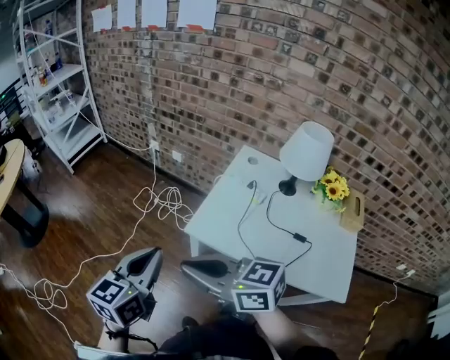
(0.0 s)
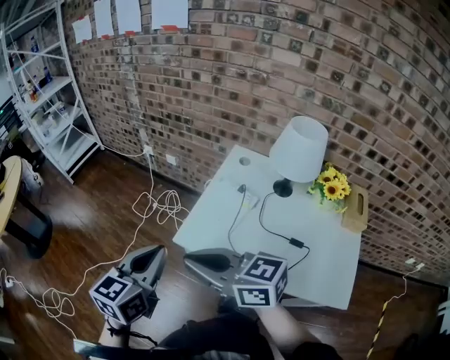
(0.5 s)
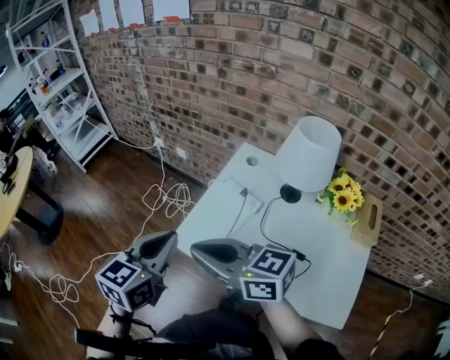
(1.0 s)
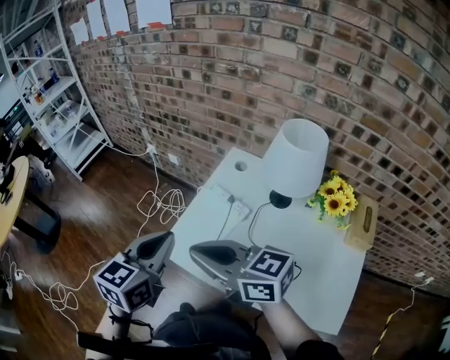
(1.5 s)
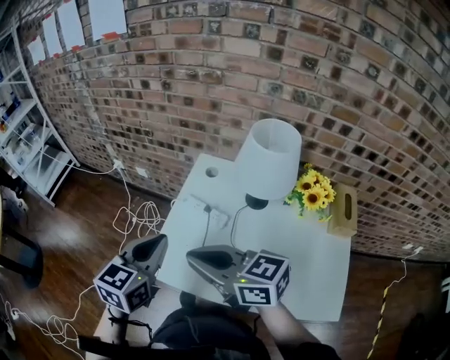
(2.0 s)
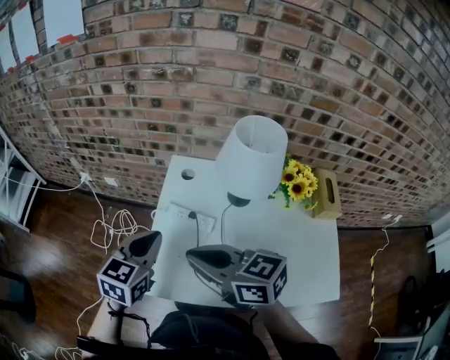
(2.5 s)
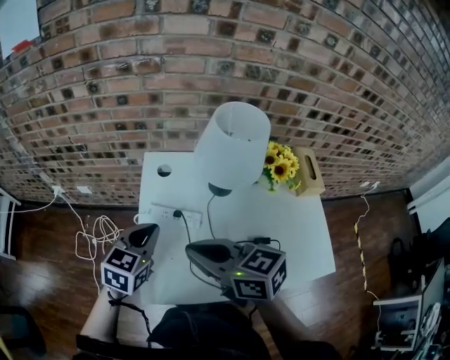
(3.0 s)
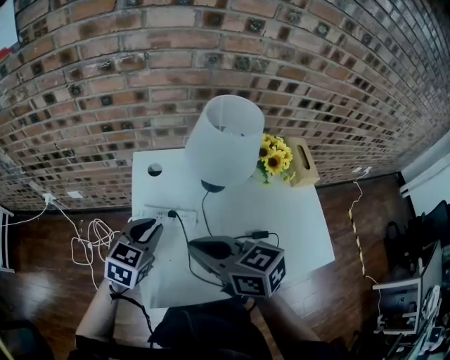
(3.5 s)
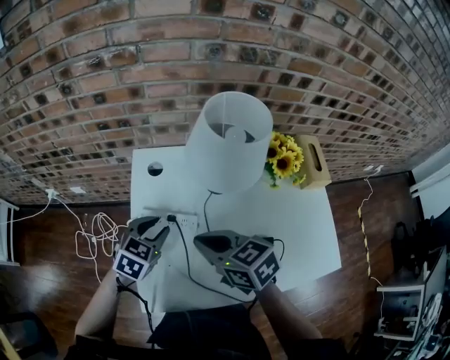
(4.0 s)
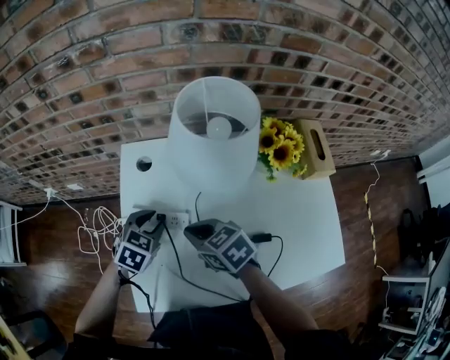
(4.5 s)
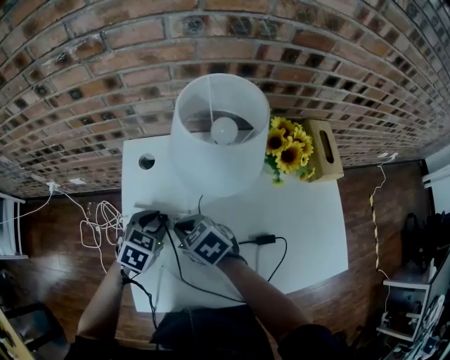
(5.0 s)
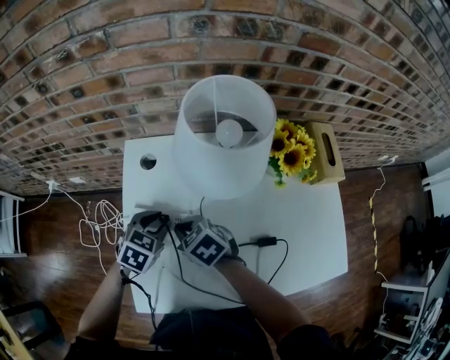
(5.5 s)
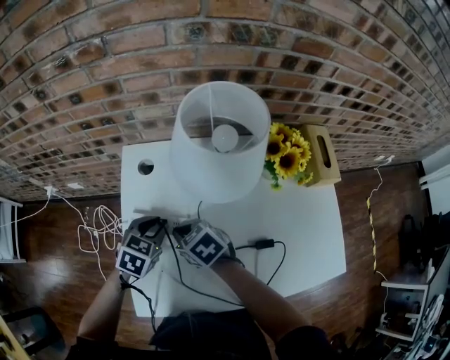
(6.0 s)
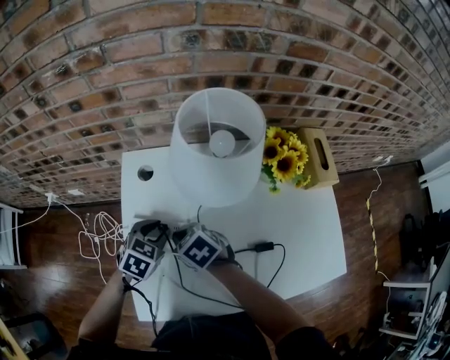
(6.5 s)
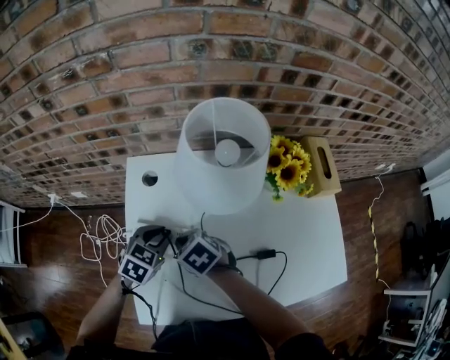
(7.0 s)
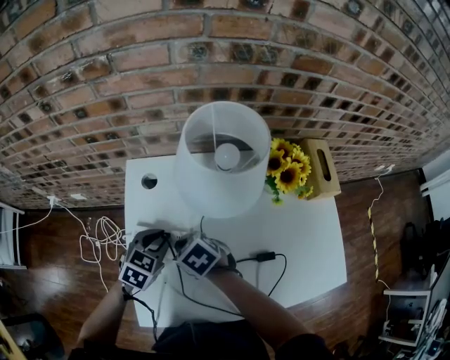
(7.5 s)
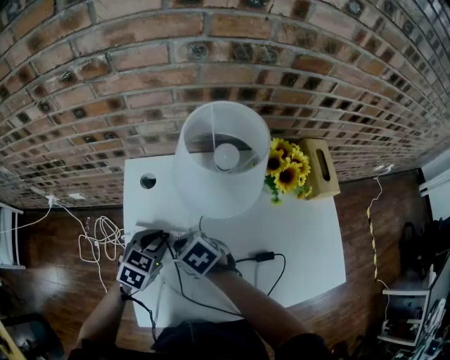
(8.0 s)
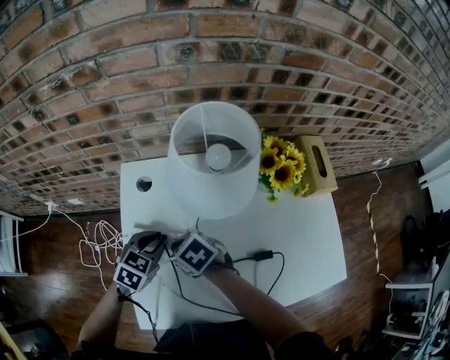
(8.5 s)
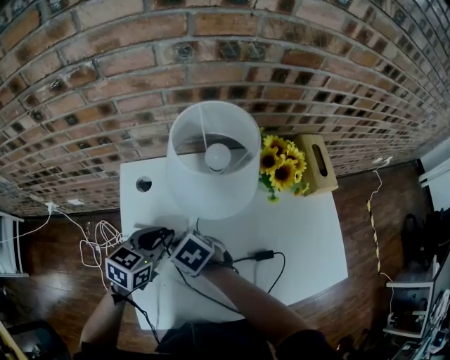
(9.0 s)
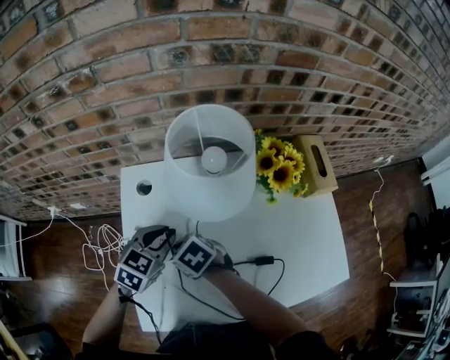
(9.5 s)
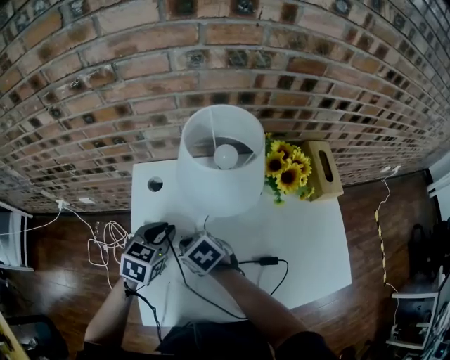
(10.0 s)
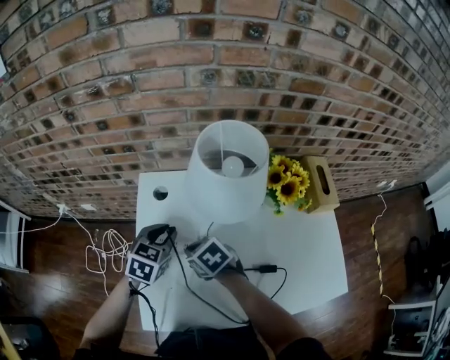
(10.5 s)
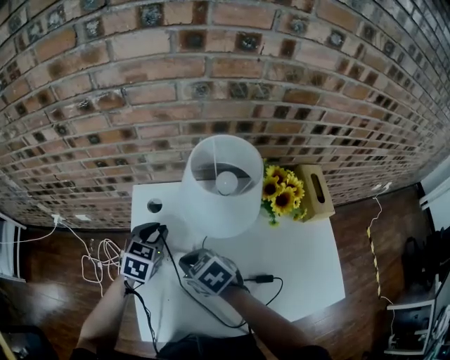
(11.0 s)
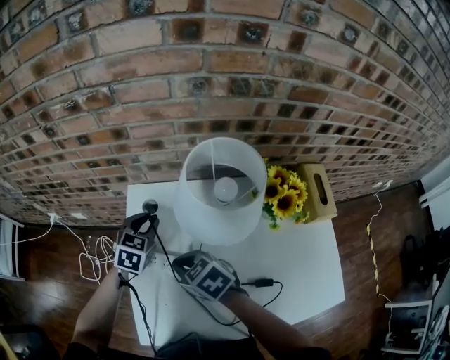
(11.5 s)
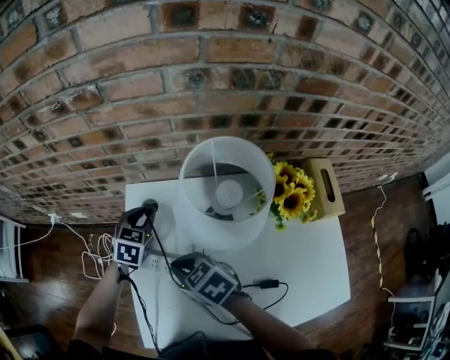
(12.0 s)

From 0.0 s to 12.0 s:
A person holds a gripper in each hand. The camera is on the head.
From 0.0 s to 2.0 s: The grippers both shift to the right and forward by approximately 25 cm.
From 2.0 s to 4.0 s: The right gripper ends up about 20 cm from where it was, and changes its angle by roughly 40 degrees; the left gripper heads downward, covering roughly 15 cm, swivels approximately 40 degrees, and opens.
From 4.0 s to 6.0 s: The right gripper heads downward and forward, covering roughly 15 cm, while the left gripper heads downward, covering about 5 cm.
From 6.0 s to 8.0 s: The grippers move only a little.
From 10.0 s to 12.0 s: The left gripper heads forward, covering about 15 cm. Meanwhile the right gripper is displaced upward by some 5 cm.

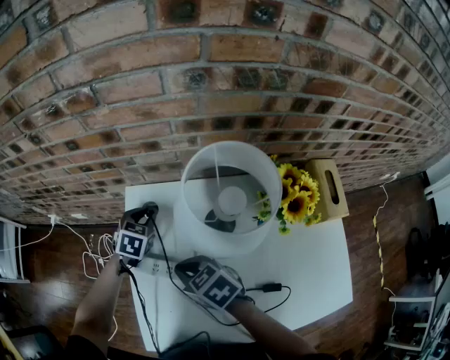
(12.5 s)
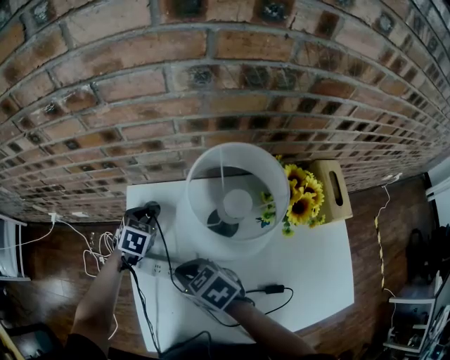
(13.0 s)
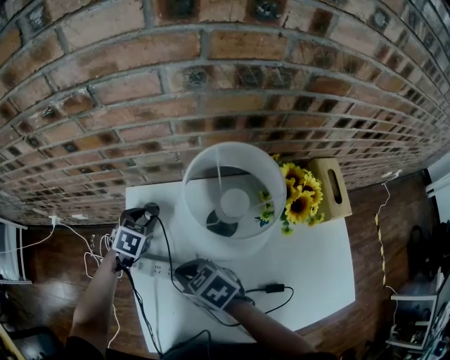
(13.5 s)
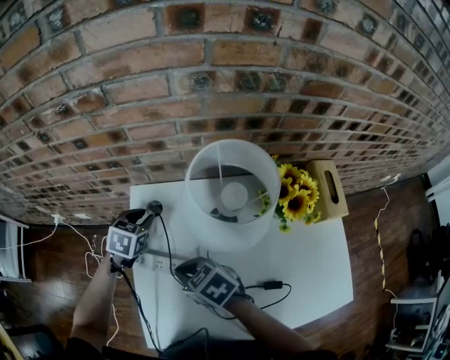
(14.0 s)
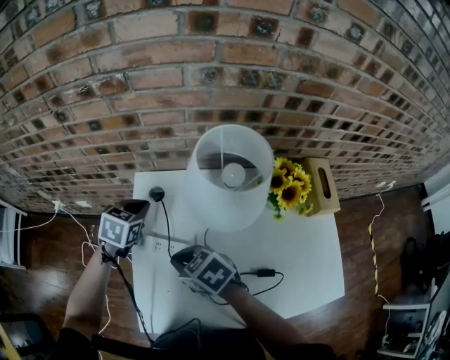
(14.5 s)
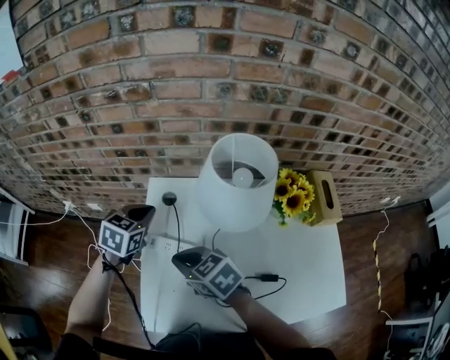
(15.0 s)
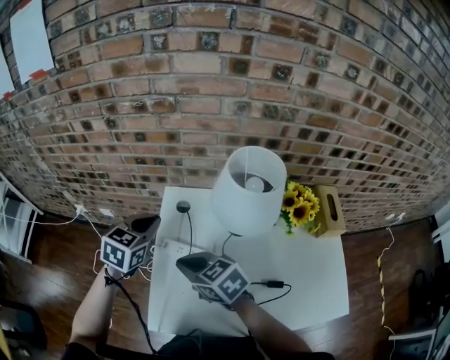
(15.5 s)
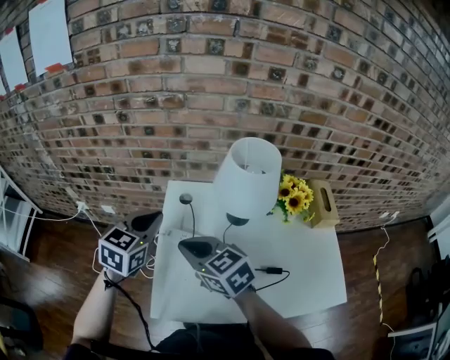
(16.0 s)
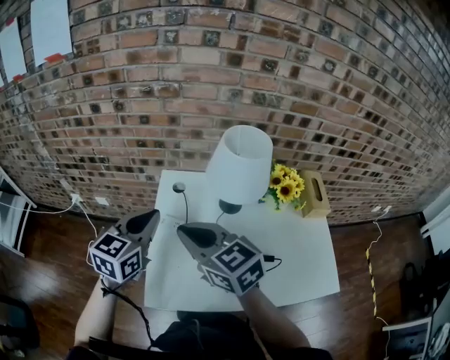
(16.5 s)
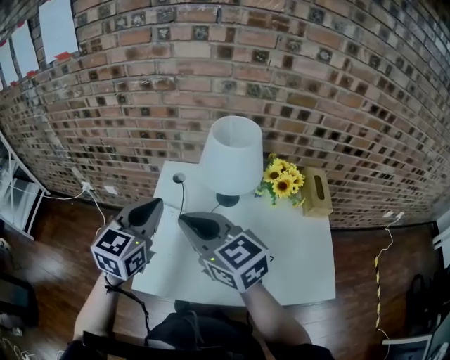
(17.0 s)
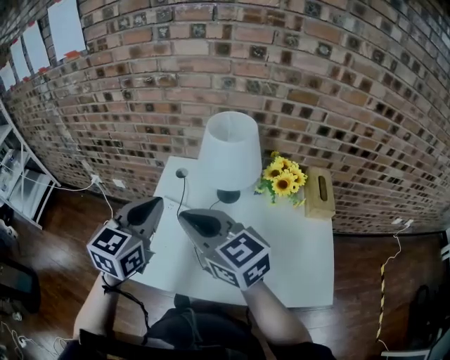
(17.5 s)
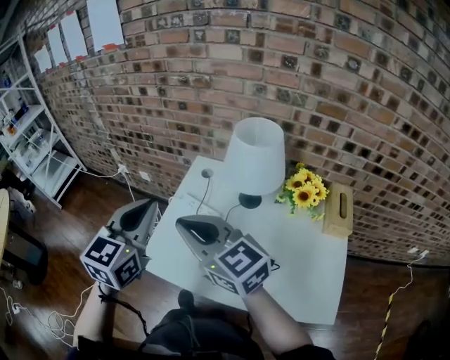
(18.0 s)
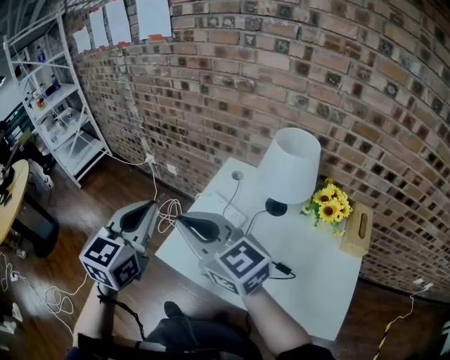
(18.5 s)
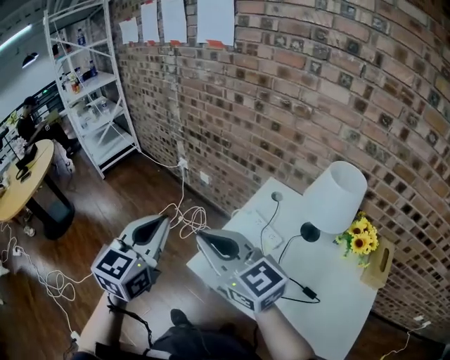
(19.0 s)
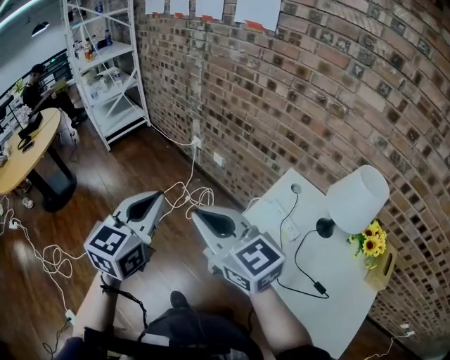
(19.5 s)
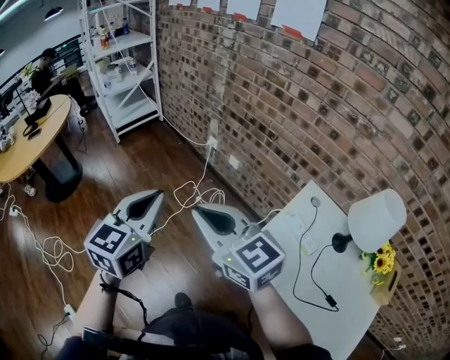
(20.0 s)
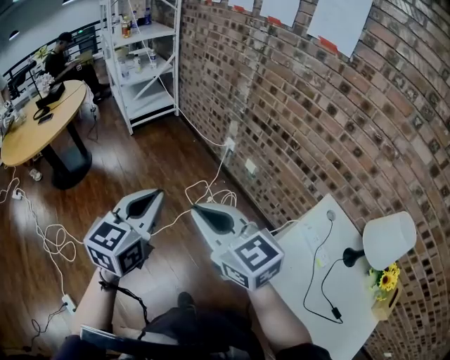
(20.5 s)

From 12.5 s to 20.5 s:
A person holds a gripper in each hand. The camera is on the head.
From 12.5 s to 14.5 s: The left gripper moves upward, roughly 5 cm, and closes. Meanwhile the right gripper ends up approximately 5 cm from where it was.
From 14.5 s to 16.5 s: The right gripper shifts about 20 cm upward, and rotates some 40 degrees; the left gripper is displaced upward and backward by roughly 25 cm, and points its fingers roughly 30 degrees further upward.
From 16.5 s to 18.5 s: The left gripper ends up roughly 20 cm from where it was, and changes its angle by roughly 30 degrees. Meanwhile the right gripper moves approximately 15 cm, and swivels roughly 30 degrees.
From 18.5 s to 20.5 s: The grippers both shift to the left and forward by about 40 cm. The left gripper rotates some 20 degrees.

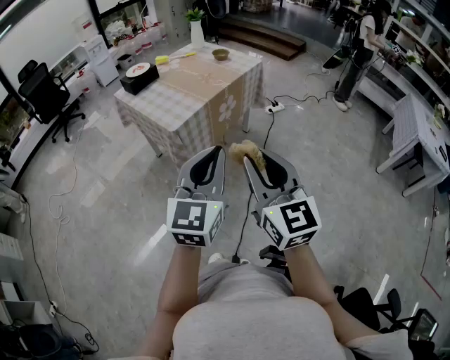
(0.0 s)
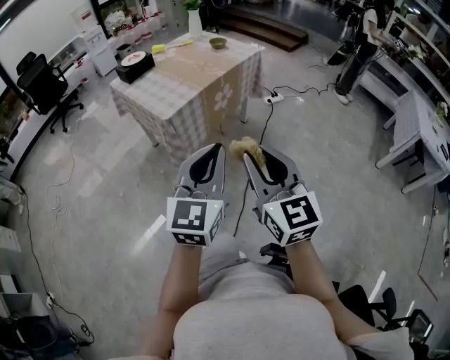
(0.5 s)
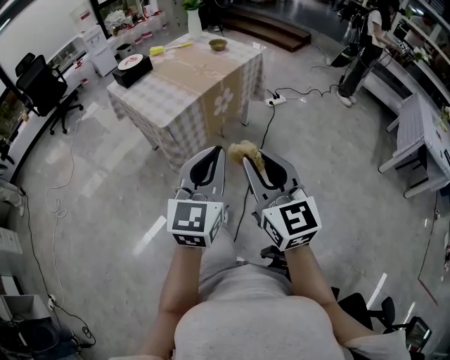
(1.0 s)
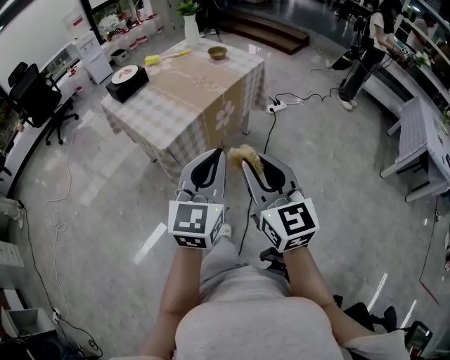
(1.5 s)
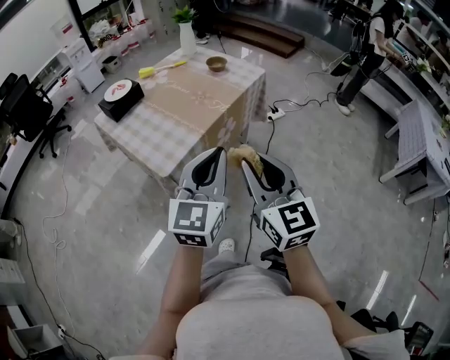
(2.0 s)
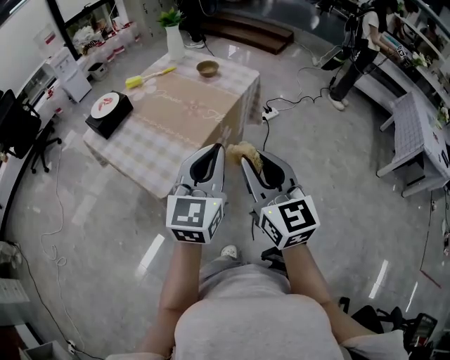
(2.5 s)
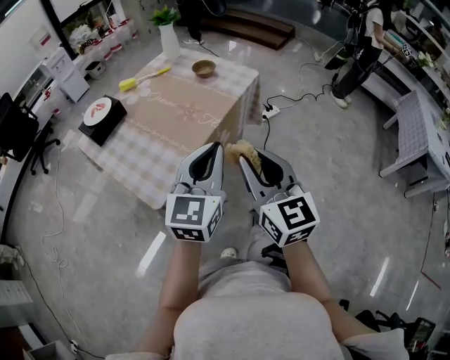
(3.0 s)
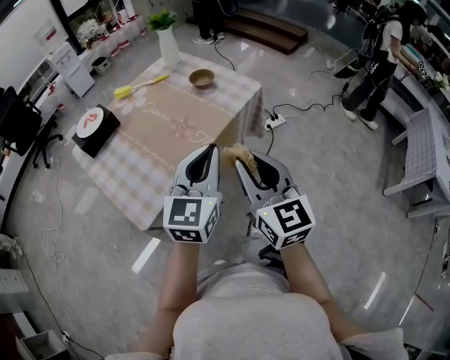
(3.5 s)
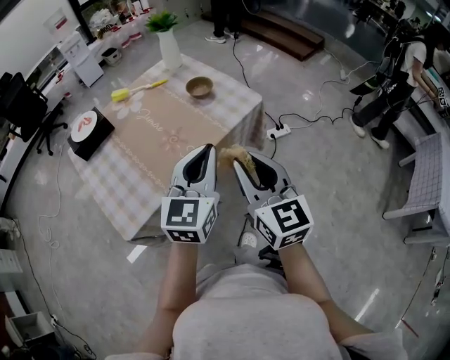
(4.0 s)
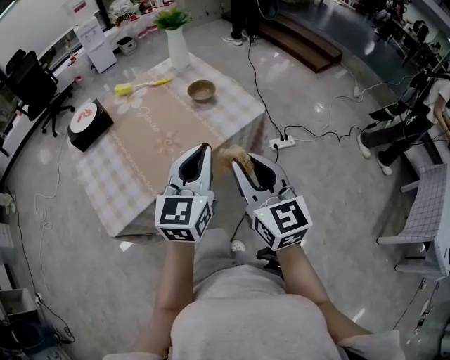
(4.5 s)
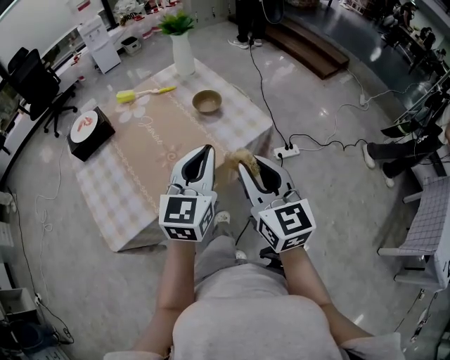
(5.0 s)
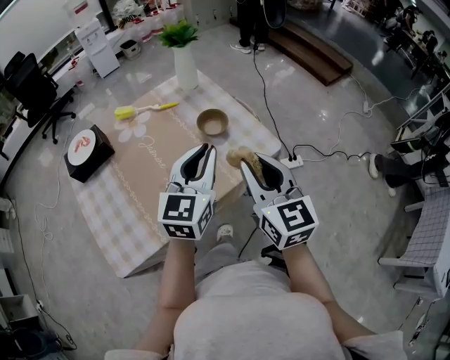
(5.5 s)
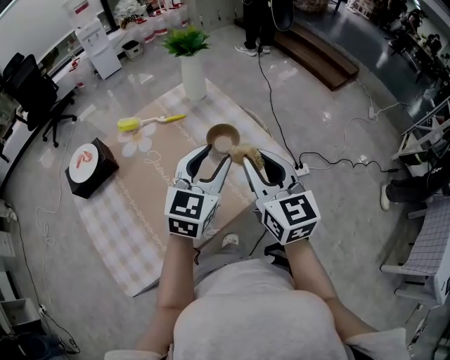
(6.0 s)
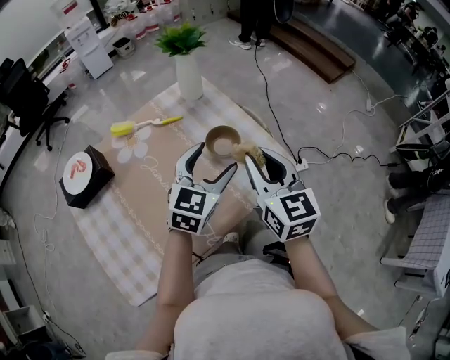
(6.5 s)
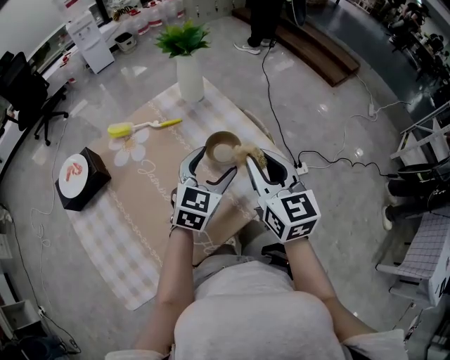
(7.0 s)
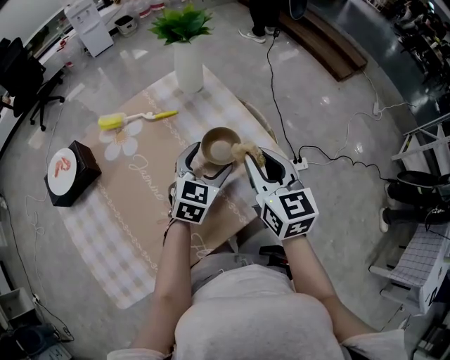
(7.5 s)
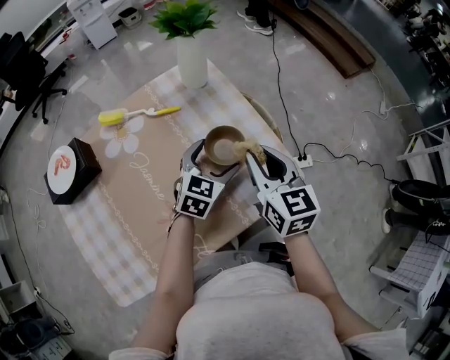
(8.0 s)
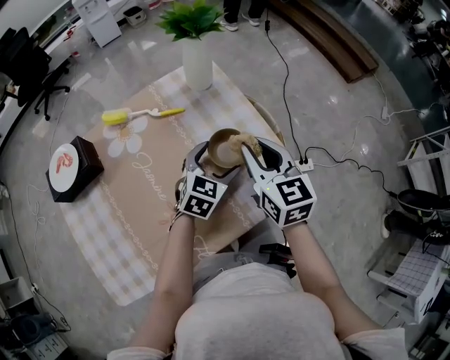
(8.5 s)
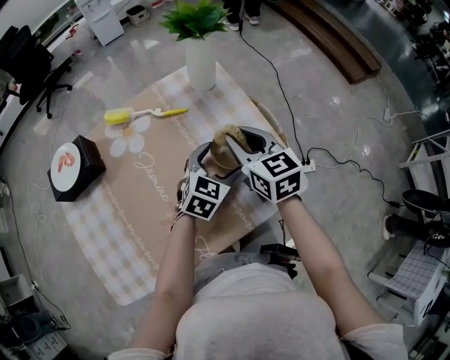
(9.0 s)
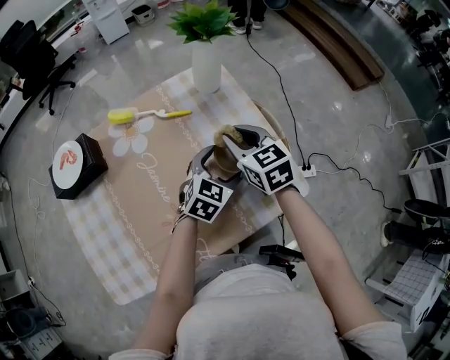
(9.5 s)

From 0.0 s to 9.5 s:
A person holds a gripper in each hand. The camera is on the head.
From 0.0 s to 2.0 s: Both grippers move forward, roughly 25 cm.
From 2.0 s to 4.0 s: The grippers both shift forward by approximately 30 cm.
From 4.0 s to 5.5 s: Both grippers travel together forward, approximately 20 cm.
From 5.5 s to 7.5 s: The left gripper goes about 25 cm downward and forward, rotates about 20 degrees, and opens. Meanwhile the right gripper shifts some 20 cm forward and downward.
From 7.5 s to 9.5 s: The right gripper travels forward, to the left and downward by approximately 15 cm, and swivels roughly 20 degrees.
